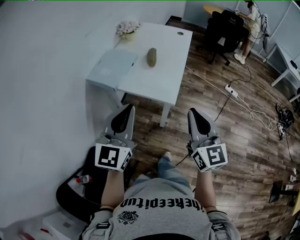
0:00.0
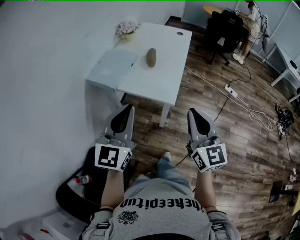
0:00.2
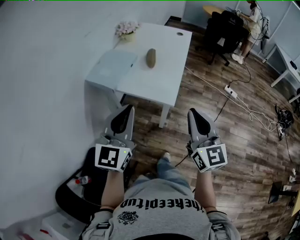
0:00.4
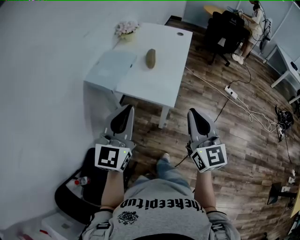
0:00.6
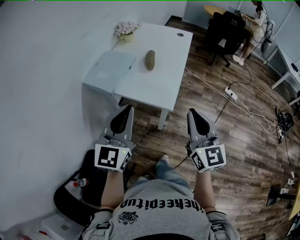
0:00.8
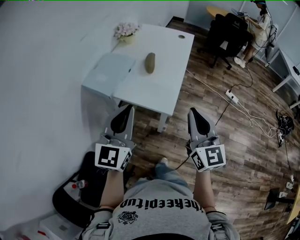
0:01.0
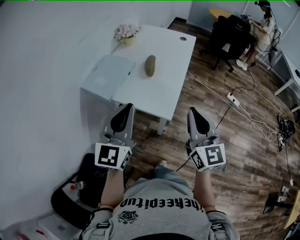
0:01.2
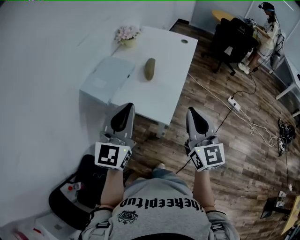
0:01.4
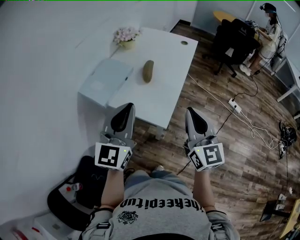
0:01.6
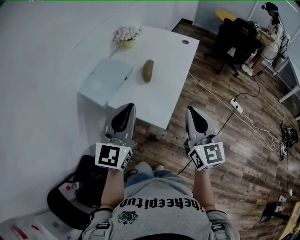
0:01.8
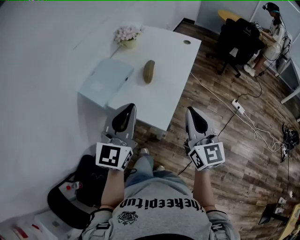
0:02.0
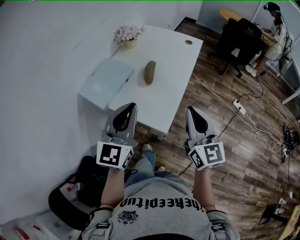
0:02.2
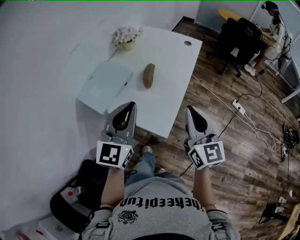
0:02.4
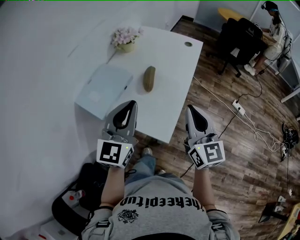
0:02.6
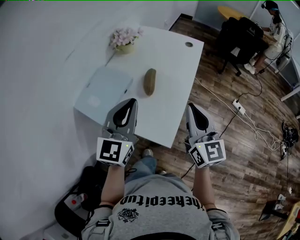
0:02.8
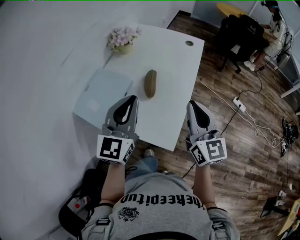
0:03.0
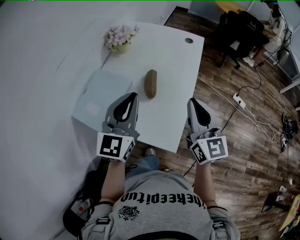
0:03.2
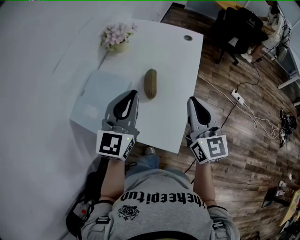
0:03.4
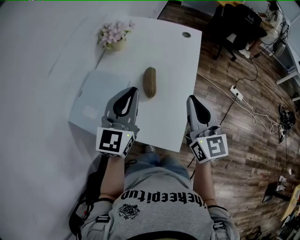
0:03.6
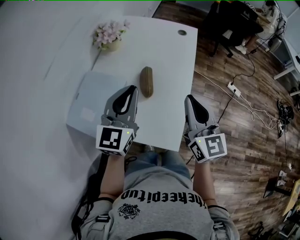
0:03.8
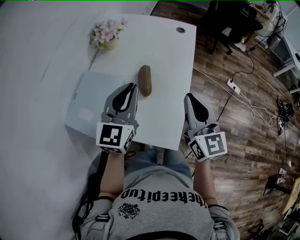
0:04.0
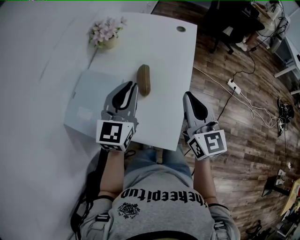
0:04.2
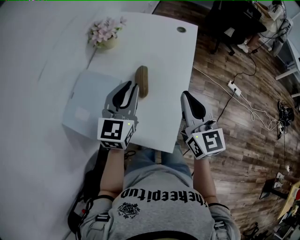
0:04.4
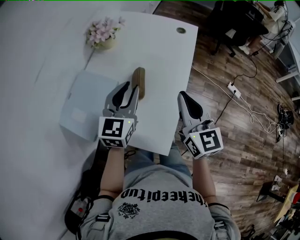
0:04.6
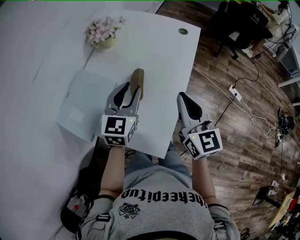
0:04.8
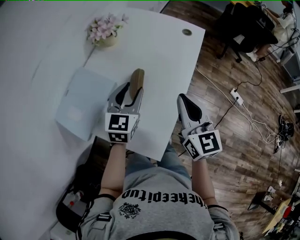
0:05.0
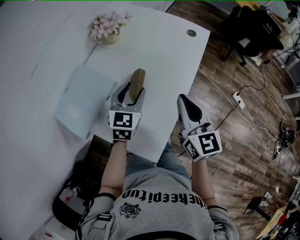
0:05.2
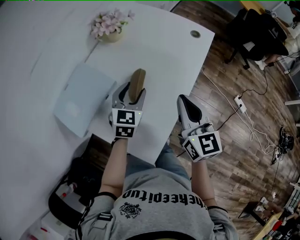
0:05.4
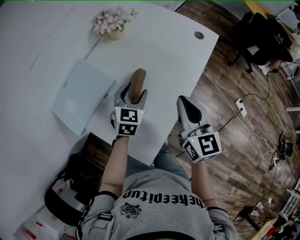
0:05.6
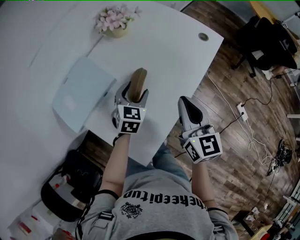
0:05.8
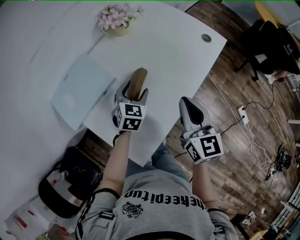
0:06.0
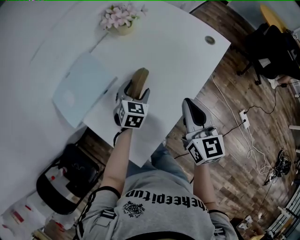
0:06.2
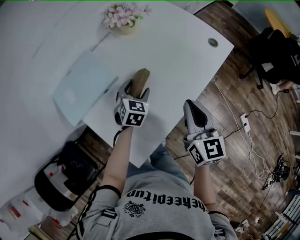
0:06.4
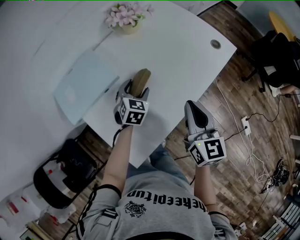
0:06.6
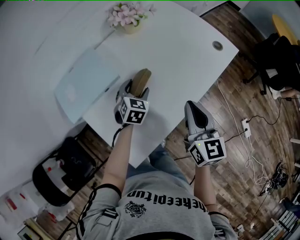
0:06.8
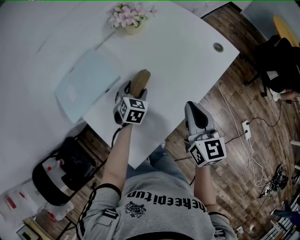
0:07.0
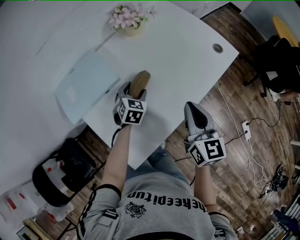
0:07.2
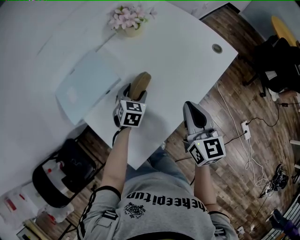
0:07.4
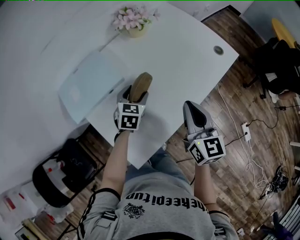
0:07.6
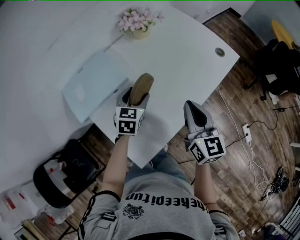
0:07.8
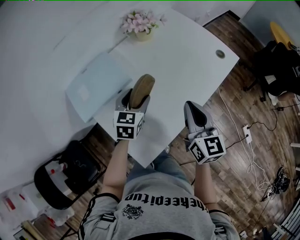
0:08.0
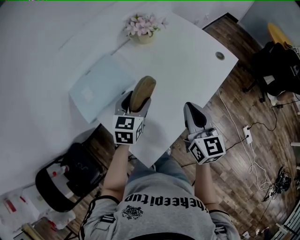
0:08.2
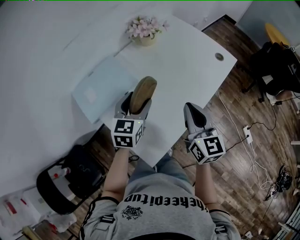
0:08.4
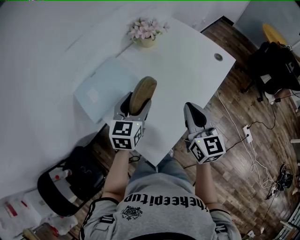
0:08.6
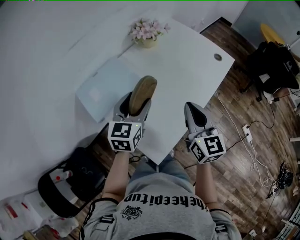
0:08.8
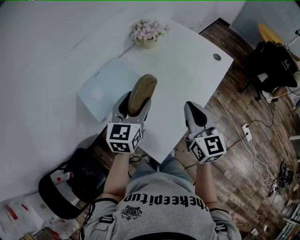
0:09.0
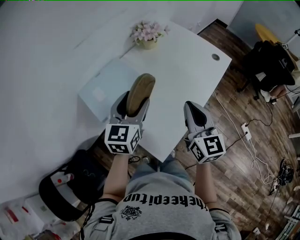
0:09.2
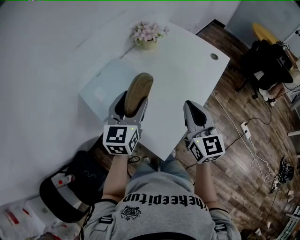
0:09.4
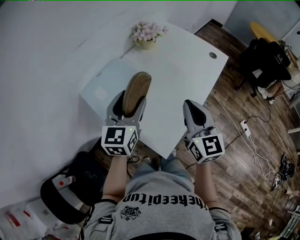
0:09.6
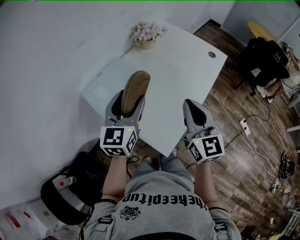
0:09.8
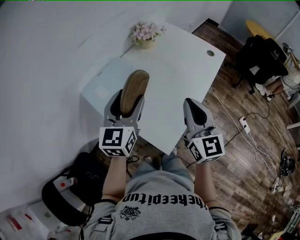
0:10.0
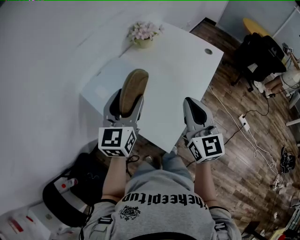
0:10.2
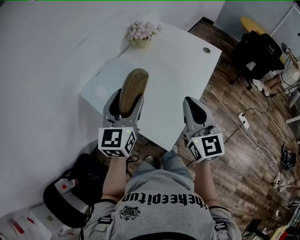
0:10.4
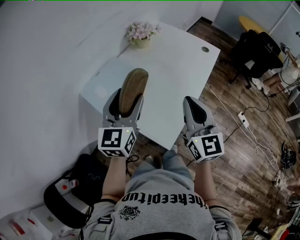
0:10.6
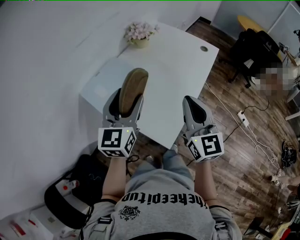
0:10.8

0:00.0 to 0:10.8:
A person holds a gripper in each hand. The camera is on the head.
0:00.0 to 0:01.6: The right gripper goes roughly 15 cm forward, while the left gripper is displaced forward and to the right by some 15 cm.
0:01.6 to 0:03.0: Both grippers travel together forward, about 20 cm.
0:03.0 to 0:04.6: The left gripper heads forward and downward, covering roughly 15 cm; the right gripper moves forward, roughly 10 cm.
0:04.6 to 0:06.2: The right gripper heads forward, to the right and downward, covering about 10 cm, and swivels roughly 20 degrees, while the left gripper is displaced downward and forward by approximately 20 cm, changes its angle by roughly 40 degrees, and opens up.
0:06.2 to 0:07.8: The left gripper shifts by some 5 cm.
0:07.8 to 0:09.2: The right gripper shifts roughly 15 cm to the left, backward and upward, while the left gripper is displaced upward, backward and to the left by some 20 cm, and rotates approximately 20 degrees.
0:09.2 to 0:10.8: The left gripper travels backward and upward by approximately 10 cm. Meanwhile the right gripper heads backward, covering roughly 10 cm.

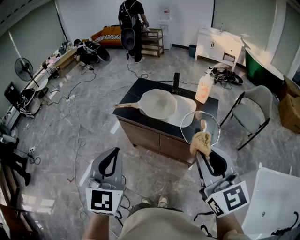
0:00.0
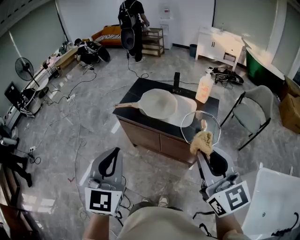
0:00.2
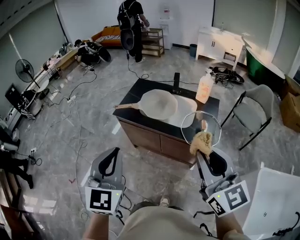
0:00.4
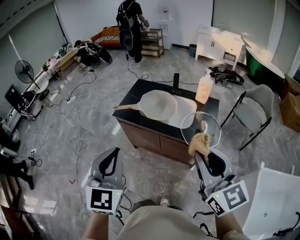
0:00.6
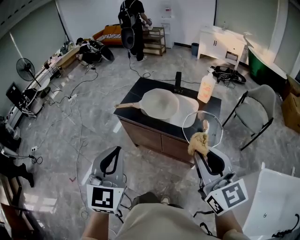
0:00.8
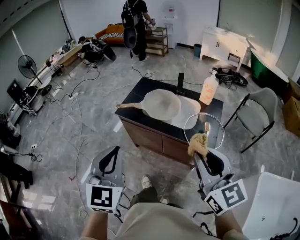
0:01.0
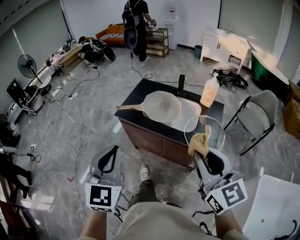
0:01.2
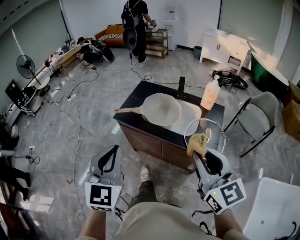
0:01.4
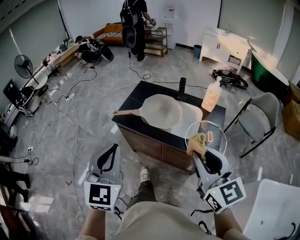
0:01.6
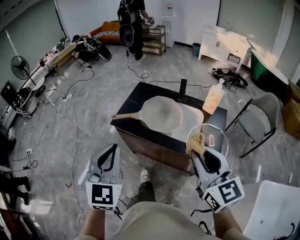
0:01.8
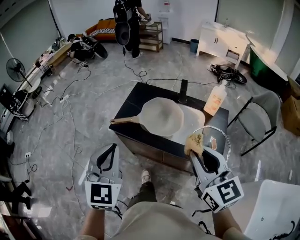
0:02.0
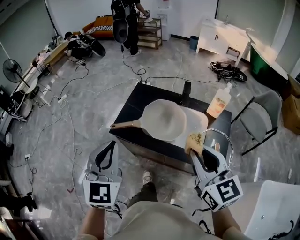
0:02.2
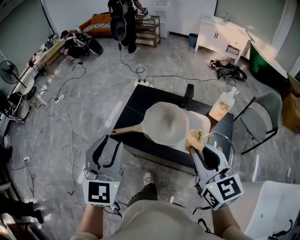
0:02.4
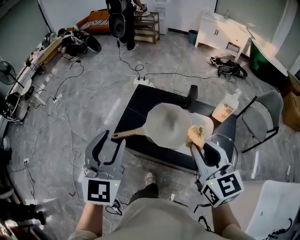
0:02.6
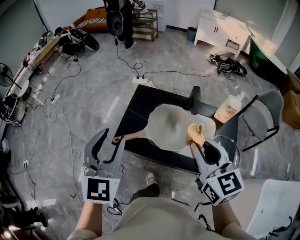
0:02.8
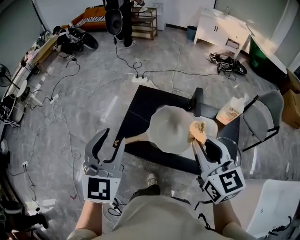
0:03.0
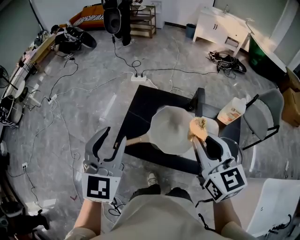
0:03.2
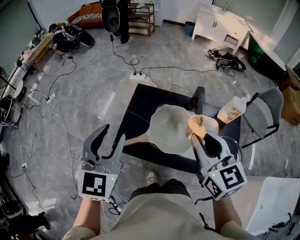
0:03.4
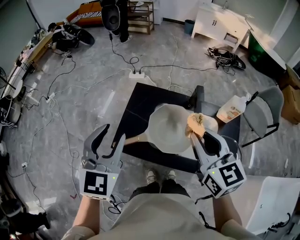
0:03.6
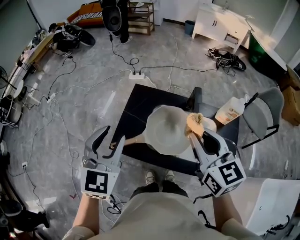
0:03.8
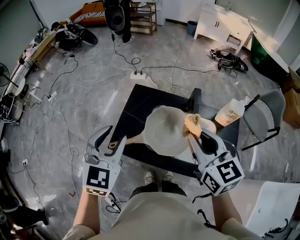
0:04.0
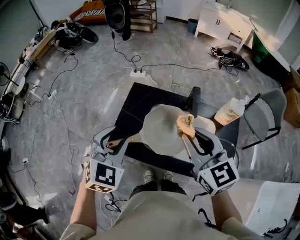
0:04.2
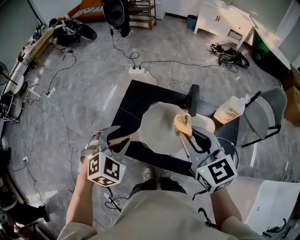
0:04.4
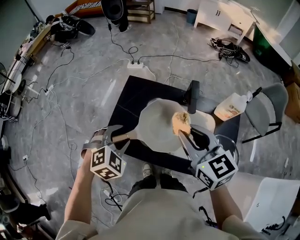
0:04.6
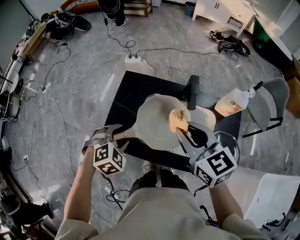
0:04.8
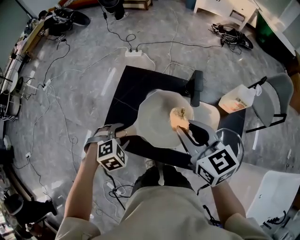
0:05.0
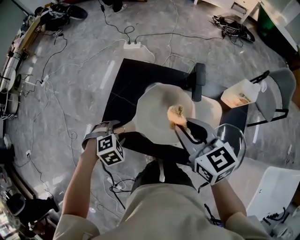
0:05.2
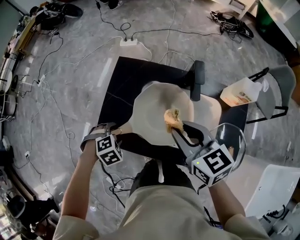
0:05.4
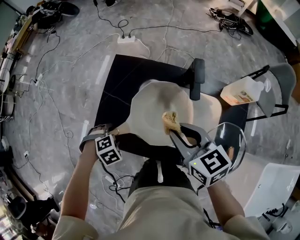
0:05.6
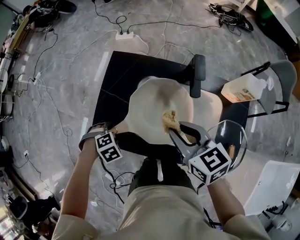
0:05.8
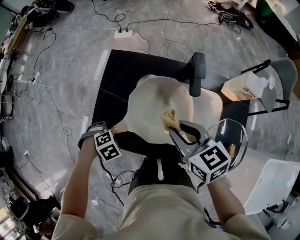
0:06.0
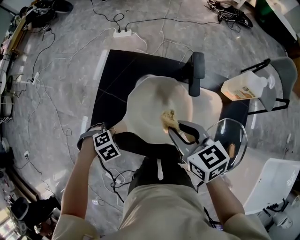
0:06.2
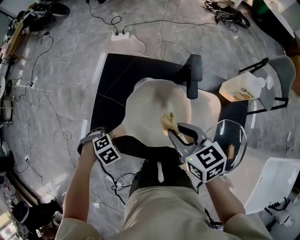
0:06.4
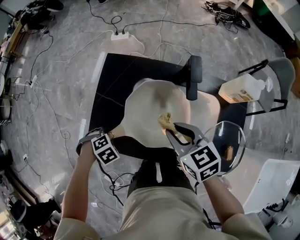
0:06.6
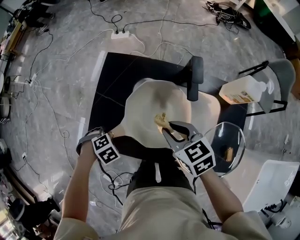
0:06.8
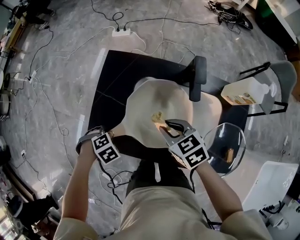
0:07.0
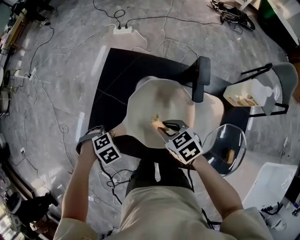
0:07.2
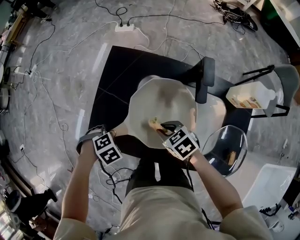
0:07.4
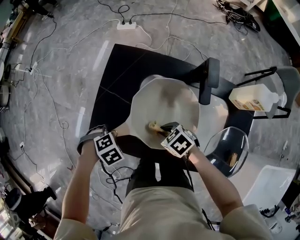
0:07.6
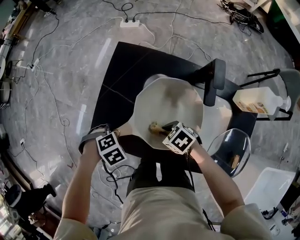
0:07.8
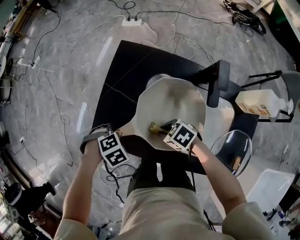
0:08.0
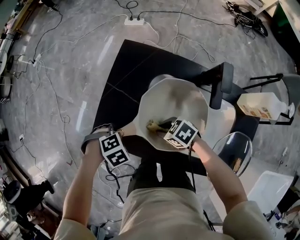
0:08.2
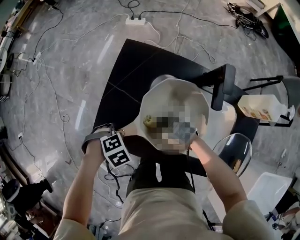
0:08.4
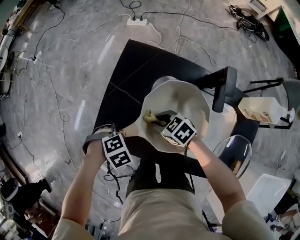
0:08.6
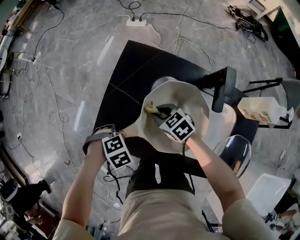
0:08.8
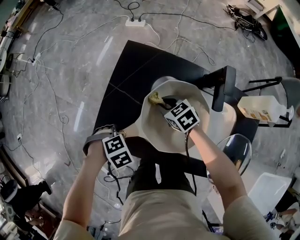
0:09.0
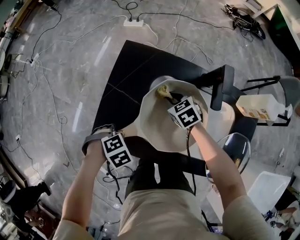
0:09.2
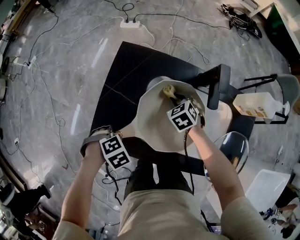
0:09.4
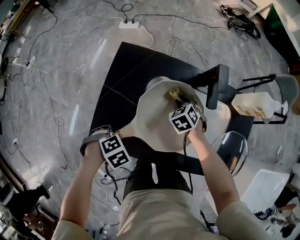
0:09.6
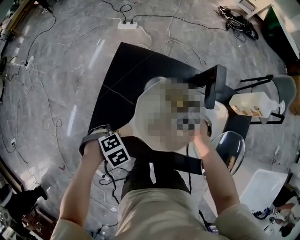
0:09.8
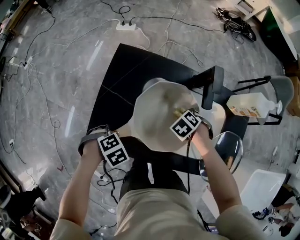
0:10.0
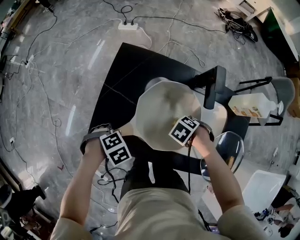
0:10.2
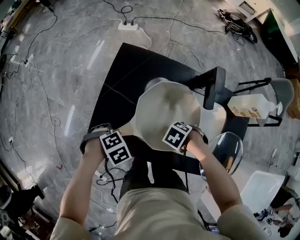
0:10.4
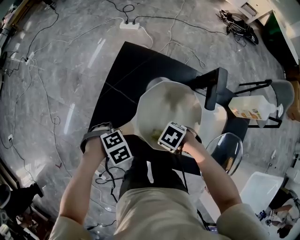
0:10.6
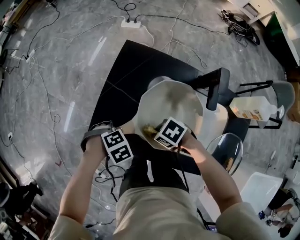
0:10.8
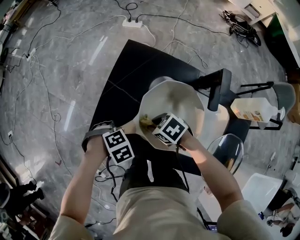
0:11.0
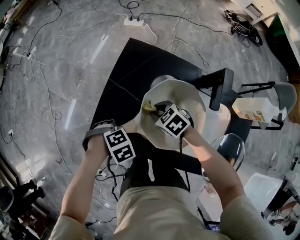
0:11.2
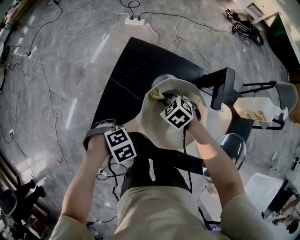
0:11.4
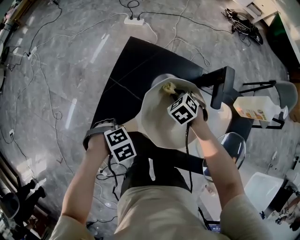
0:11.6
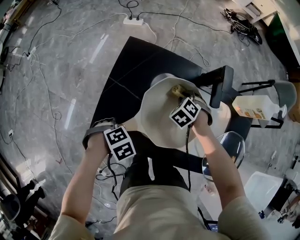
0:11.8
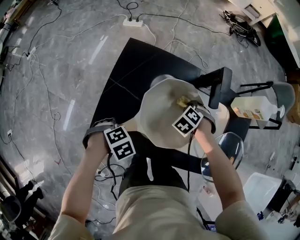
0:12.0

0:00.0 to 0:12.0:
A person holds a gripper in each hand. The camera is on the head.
0:00.0 to 0:01.6: The left gripper moves forward, some 10 cm. Meanwhile the right gripper shifts about 15 cm forward and downward.
0:01.6 to 0:03.0: Both grippers move forward, roughly 30 cm. The left gripper opens its fingers.
0:03.0 to 0:04.4: The right gripper travels forward by some 5 cm. Meanwhile the left gripper goes approximately 15 cm downward and to the right, and rotates approximately 40 degrees.
0:04.4 to 0:06.0: The left gripper moves downward, some 30 cm, and tips its fingers downward by some 50 degrees. The right gripper is displaced downward by roughly 15 cm, and turns by approximately 20 degrees.
0:06.0 to 0:07.6: The left gripper closes, while the right gripper is displaced downward by some 20 cm, and rotates approximately 40 degrees.
0:07.6 to 0:09.0: The right gripper changes place by roughly 15 cm.
0:09.0 to 0:10.4: The right gripper moves roughly 20 cm, and swivels some 50 degrees.
0:10.4 to 0:12.0: The right gripper shifts by some 15 cm, and swivels approximately 30 degrees.

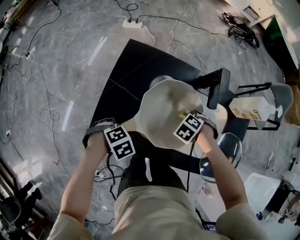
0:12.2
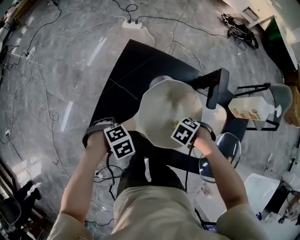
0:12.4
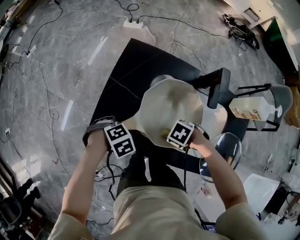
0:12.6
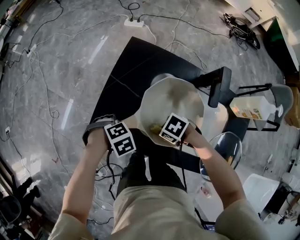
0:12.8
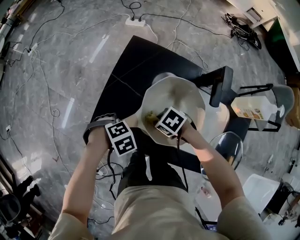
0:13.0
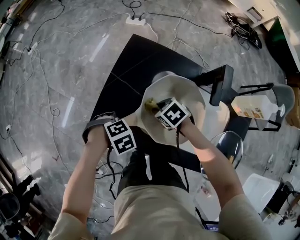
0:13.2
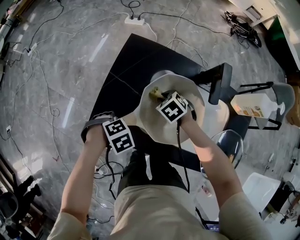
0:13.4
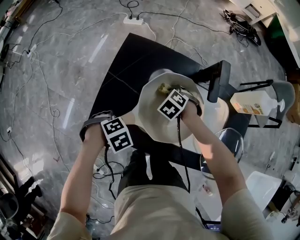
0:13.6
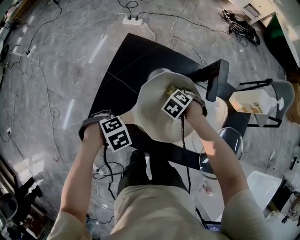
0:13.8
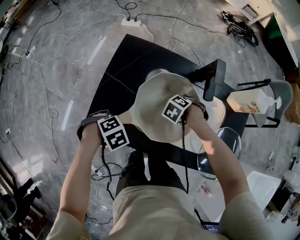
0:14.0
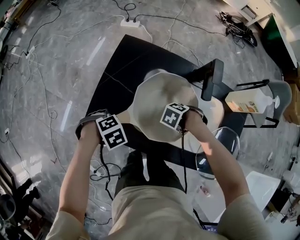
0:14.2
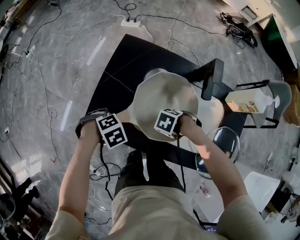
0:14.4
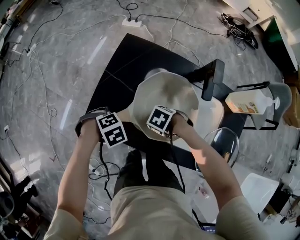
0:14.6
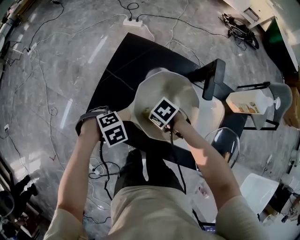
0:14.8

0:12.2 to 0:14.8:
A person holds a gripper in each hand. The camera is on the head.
0:12.2 to 0:13.4: The right gripper moves roughly 15 cm, and turns by about 30 degrees.
0:13.4 to 0:14.8: The right gripper swivels roughly 20 degrees.
